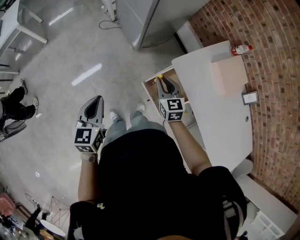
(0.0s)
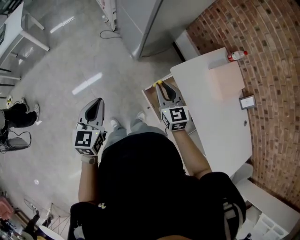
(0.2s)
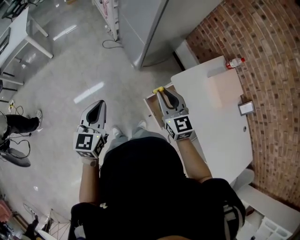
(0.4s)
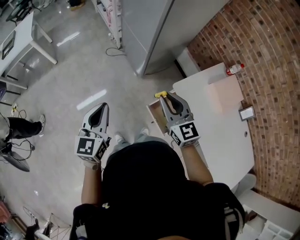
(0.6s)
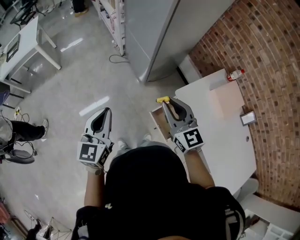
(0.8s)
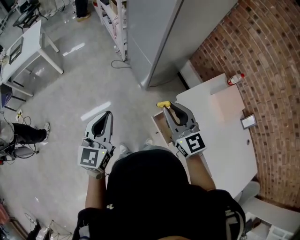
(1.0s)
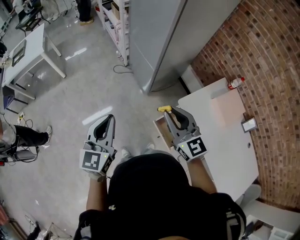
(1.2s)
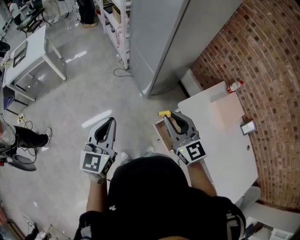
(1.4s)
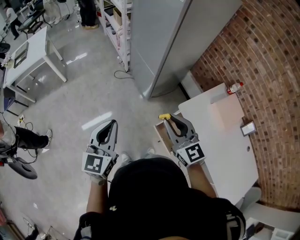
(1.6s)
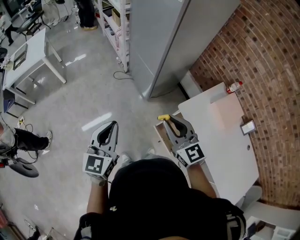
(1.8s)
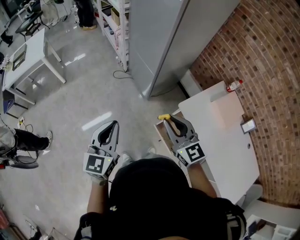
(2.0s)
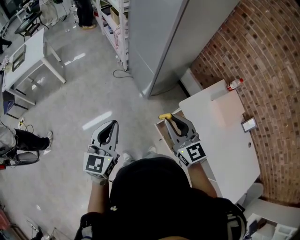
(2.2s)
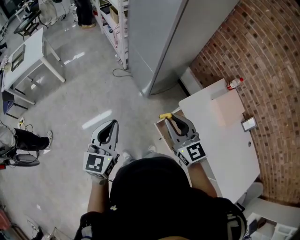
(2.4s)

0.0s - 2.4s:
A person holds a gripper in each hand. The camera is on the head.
0.0s - 1.2s: Both grippers travel together upward, some 20 cm. The right gripper changes its angle by roughly 30 degrees, while the left gripper rotates about 20 degrees.
1.2s - 2.4s: The grippers make only small movements.

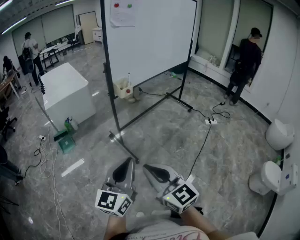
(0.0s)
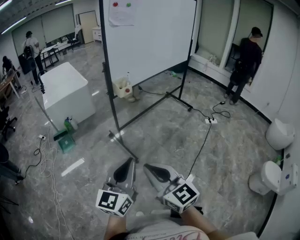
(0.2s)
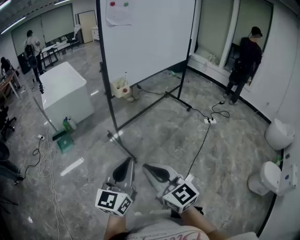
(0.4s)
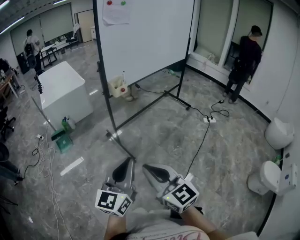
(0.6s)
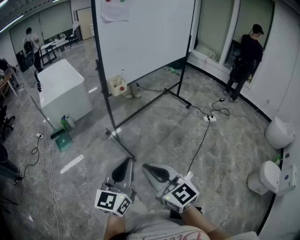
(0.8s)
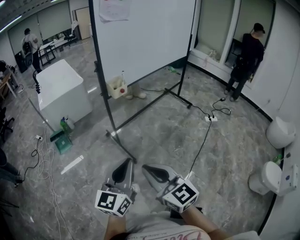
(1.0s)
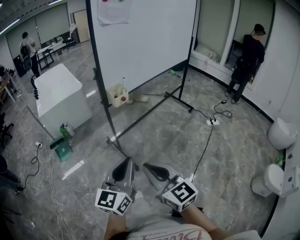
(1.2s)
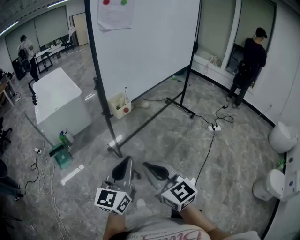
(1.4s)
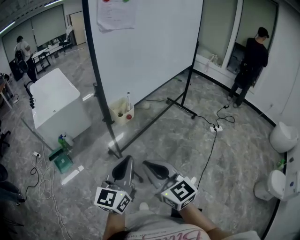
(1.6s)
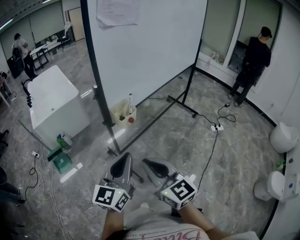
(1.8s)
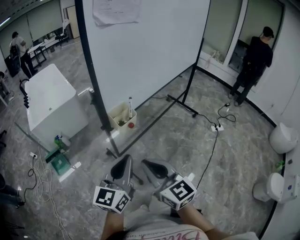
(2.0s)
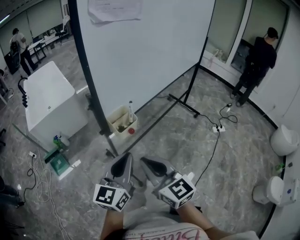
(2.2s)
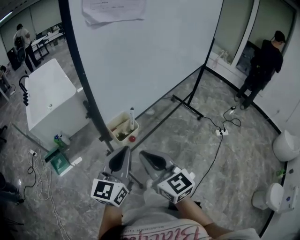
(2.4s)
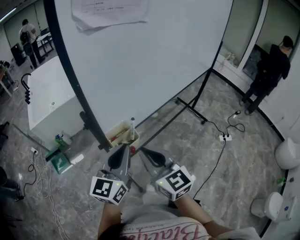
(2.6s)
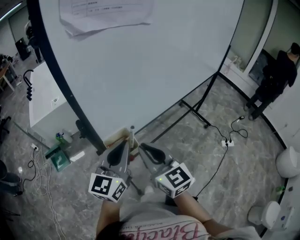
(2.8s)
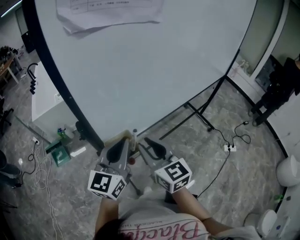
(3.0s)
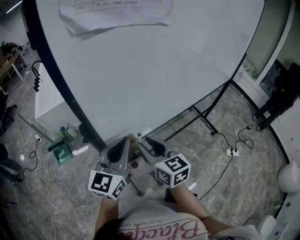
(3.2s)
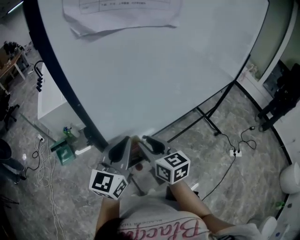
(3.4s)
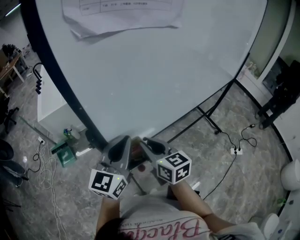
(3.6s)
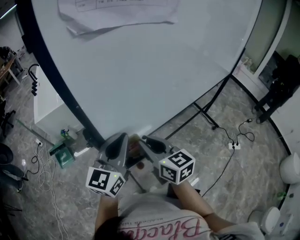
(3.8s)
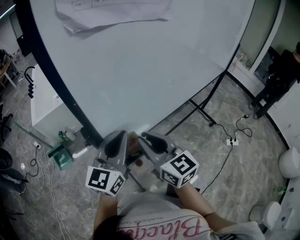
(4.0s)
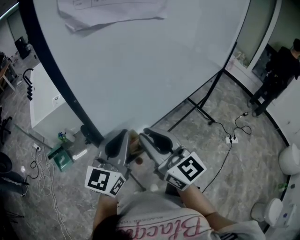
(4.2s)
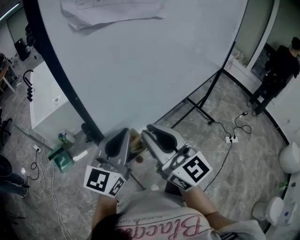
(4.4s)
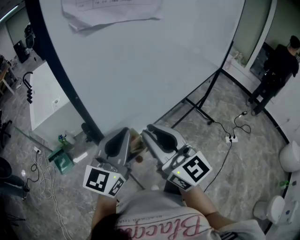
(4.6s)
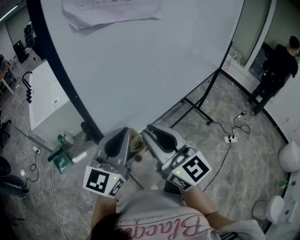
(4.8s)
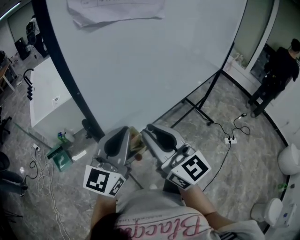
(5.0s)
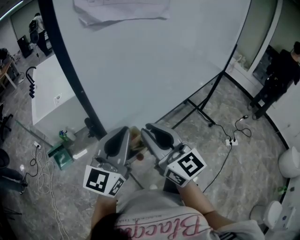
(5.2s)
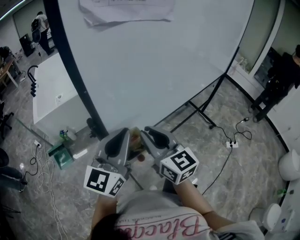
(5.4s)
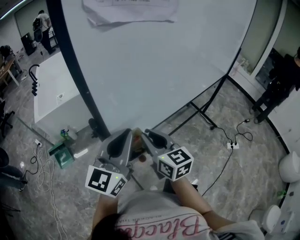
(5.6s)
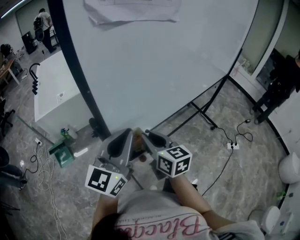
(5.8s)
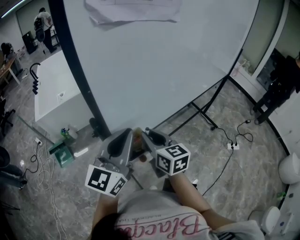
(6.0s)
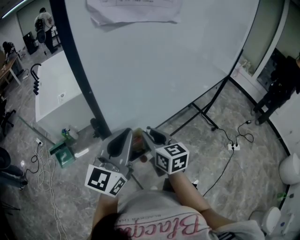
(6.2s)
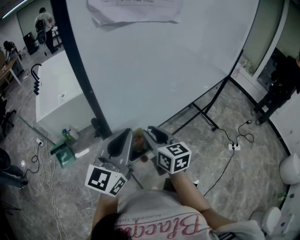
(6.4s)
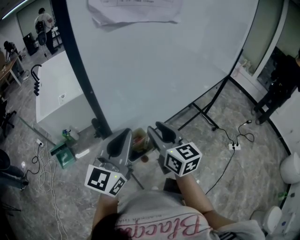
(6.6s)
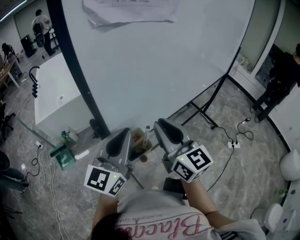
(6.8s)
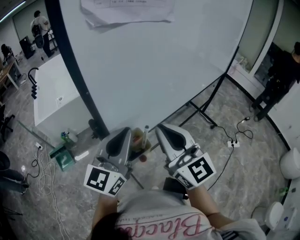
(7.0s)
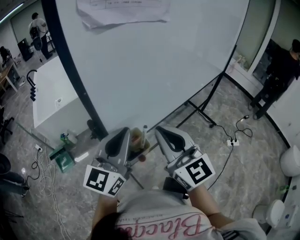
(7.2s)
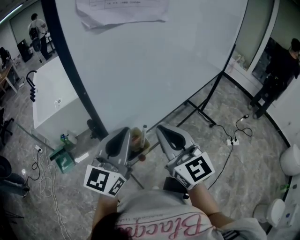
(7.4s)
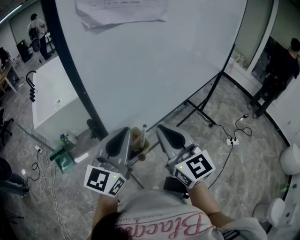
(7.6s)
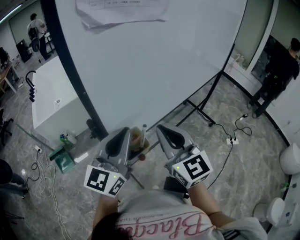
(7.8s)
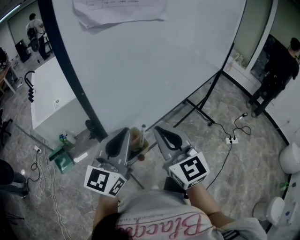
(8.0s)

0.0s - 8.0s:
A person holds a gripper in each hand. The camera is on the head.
0.0s - 1.6s: Both grippers move forward, approximately 25 cm.
1.6s - 3.2s: Both grippers move forward, some 30 cm. The right gripper opens up.
3.2s - 4.8s: The right gripper is displaced upward by about 15 cm, and rotates some 30 degrees. The left gripper moves upward, about 5 cm.
4.8s - 6.4s: The right gripper is displaced downward and forward by some 15 cm, and changes its angle by about 30 degrees.
6.4s - 8.0s: The right gripper heads upward and backward, covering roughly 10 cm, changes its angle by roughly 30 degrees, and closes.

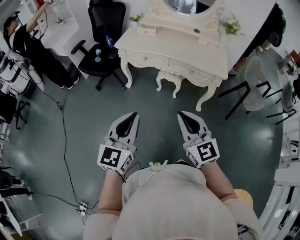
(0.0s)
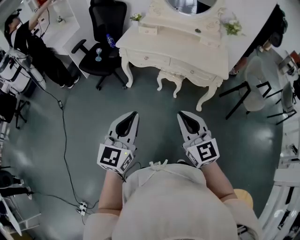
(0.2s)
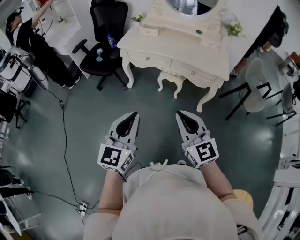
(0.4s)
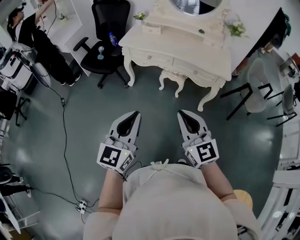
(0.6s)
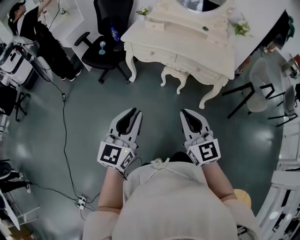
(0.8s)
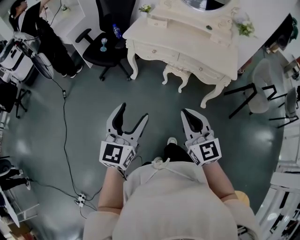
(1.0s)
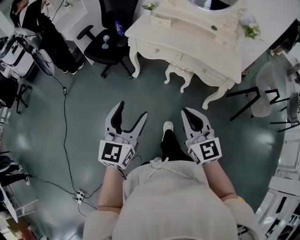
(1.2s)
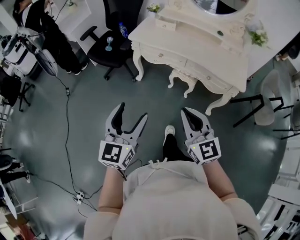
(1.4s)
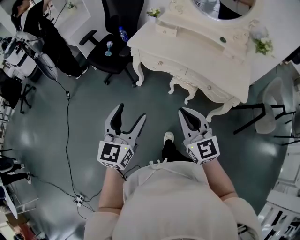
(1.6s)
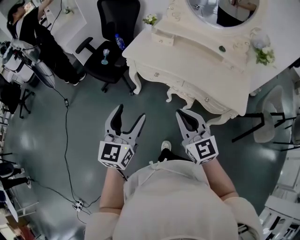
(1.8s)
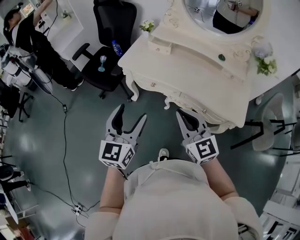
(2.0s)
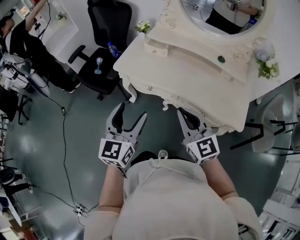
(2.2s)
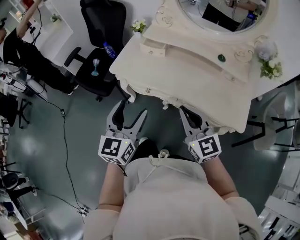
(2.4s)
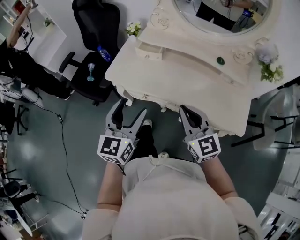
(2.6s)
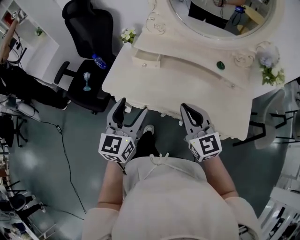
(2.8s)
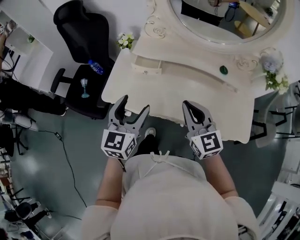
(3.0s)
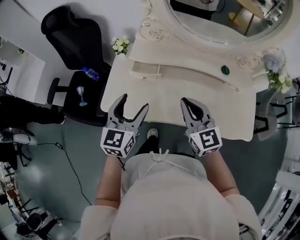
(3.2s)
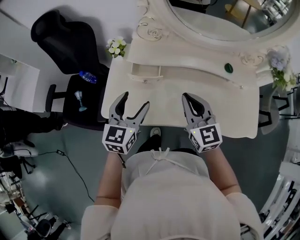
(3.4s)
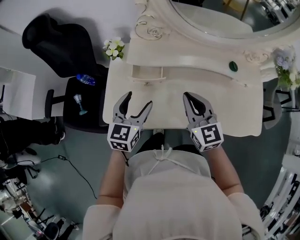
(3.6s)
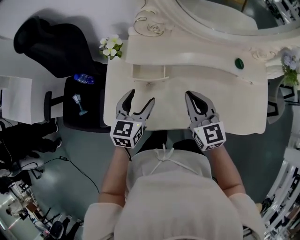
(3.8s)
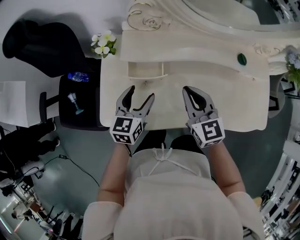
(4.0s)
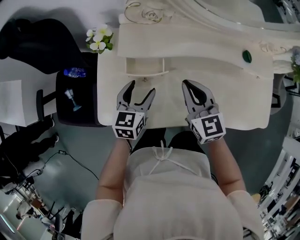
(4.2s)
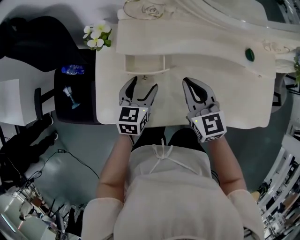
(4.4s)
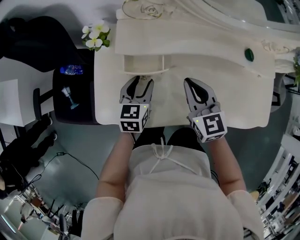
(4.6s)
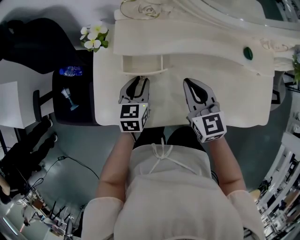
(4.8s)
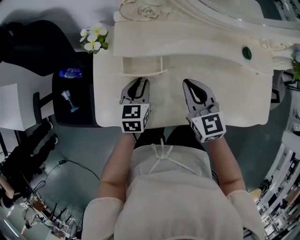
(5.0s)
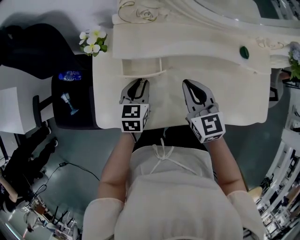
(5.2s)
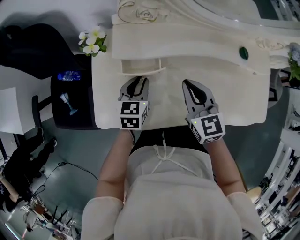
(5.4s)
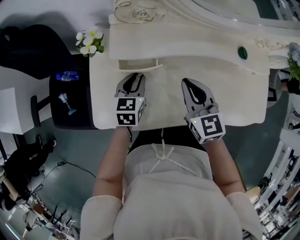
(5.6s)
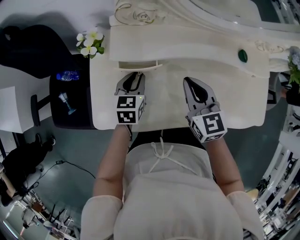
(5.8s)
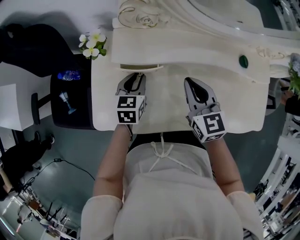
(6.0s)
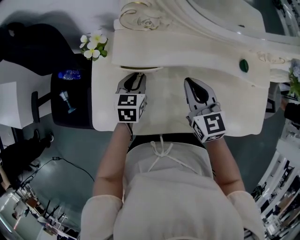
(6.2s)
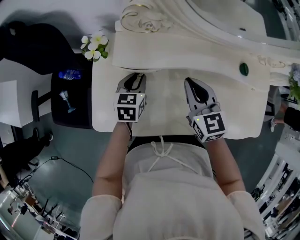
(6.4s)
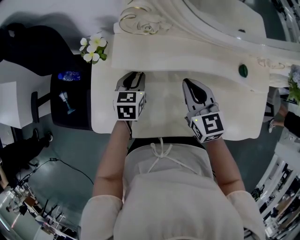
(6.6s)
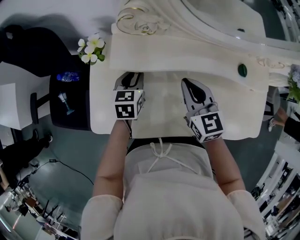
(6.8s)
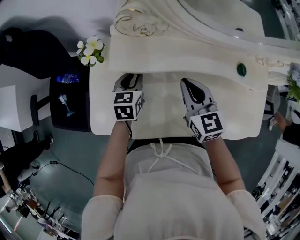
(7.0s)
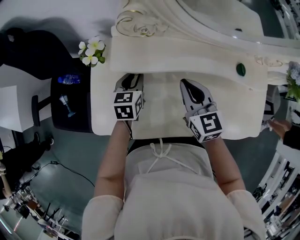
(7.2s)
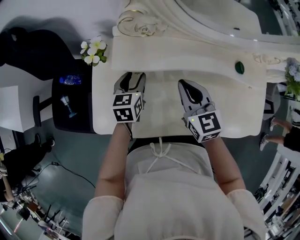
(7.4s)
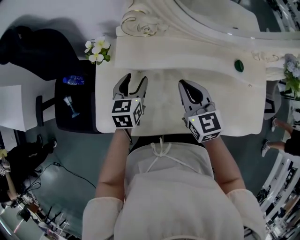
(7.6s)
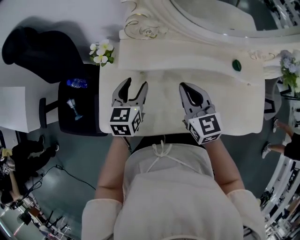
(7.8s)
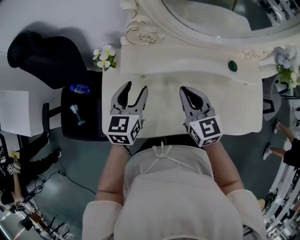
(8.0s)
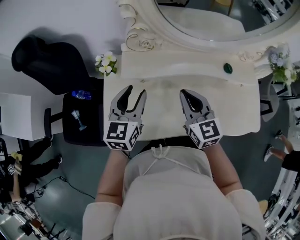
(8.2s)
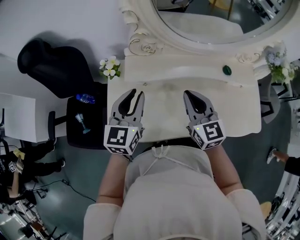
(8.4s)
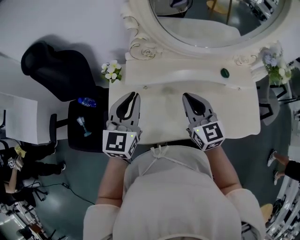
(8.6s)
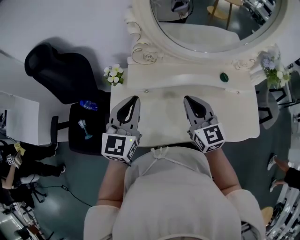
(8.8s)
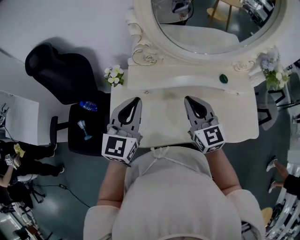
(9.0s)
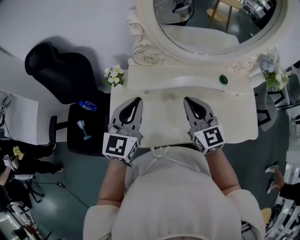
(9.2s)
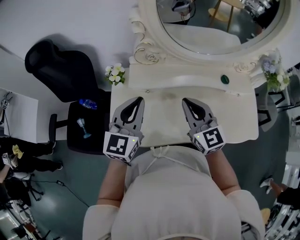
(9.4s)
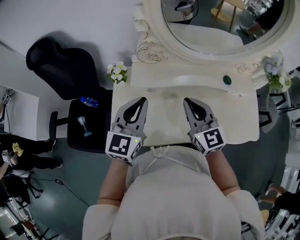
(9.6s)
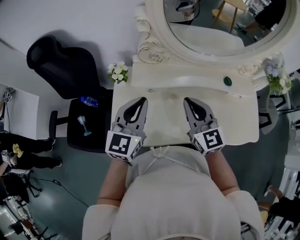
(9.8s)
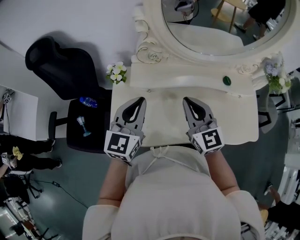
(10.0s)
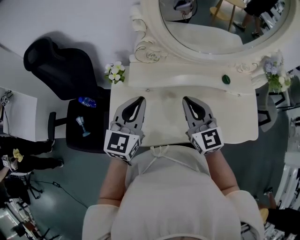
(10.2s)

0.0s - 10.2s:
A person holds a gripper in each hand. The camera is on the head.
0.0s - 1.4s: The grippers both shift forward by roughly 10 cm. The left gripper opens up.
1.4s - 3.0s: The pair of grippers is taken forward, approximately 50 cm.
3.0s - 4.4s: The left gripper heads downward and forward, covering some 30 cm, and rotates roughly 30 degrees; the right gripper travels forward and downward by approximately 25 cm.
4.4s - 5.8s: The left gripper closes up.
5.8s - 7.2s: The grippers stay close to where they were, moving slightly.
7.2s - 8.8s: The right gripper shifts about 15 cm upward and backward; the left gripper travels upward by roughly 25 cm, tilts its fingers roughly 30 degrees upward, and opens, then closes again.
8.8s - 10.2s: The grippers stay close to where they were, moving slightly.

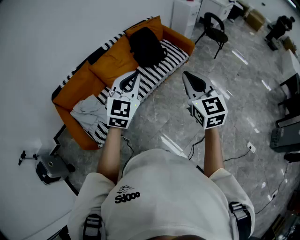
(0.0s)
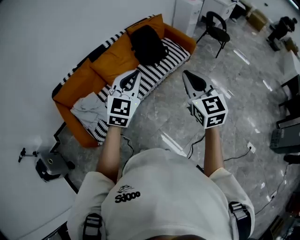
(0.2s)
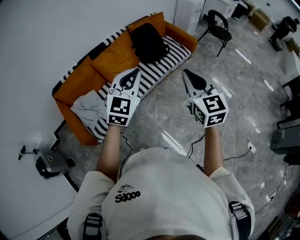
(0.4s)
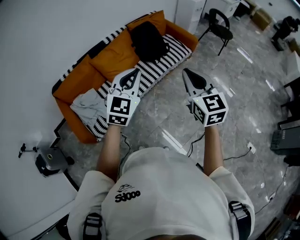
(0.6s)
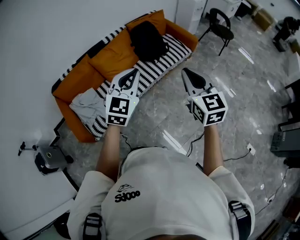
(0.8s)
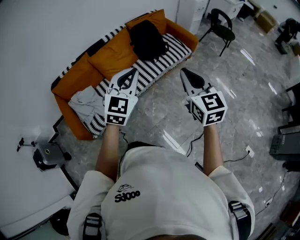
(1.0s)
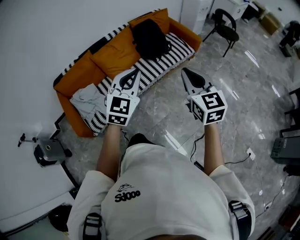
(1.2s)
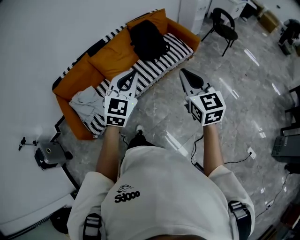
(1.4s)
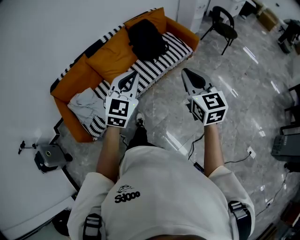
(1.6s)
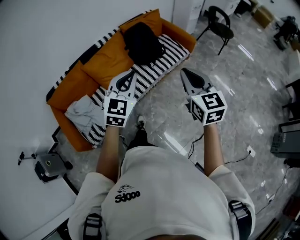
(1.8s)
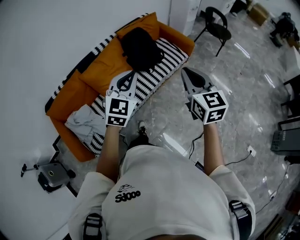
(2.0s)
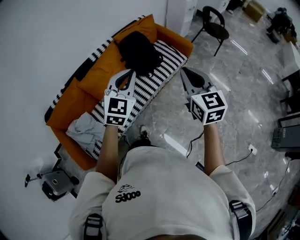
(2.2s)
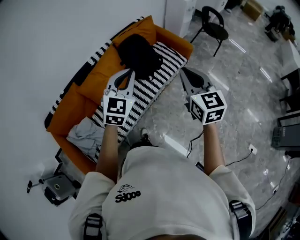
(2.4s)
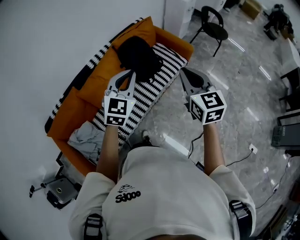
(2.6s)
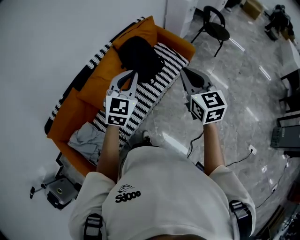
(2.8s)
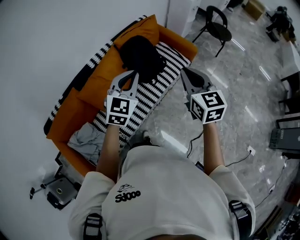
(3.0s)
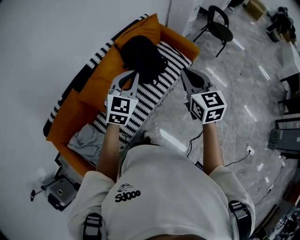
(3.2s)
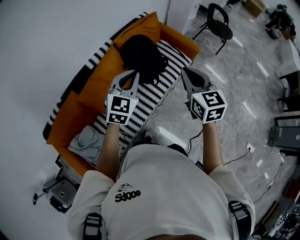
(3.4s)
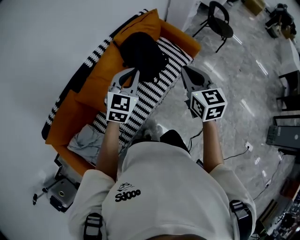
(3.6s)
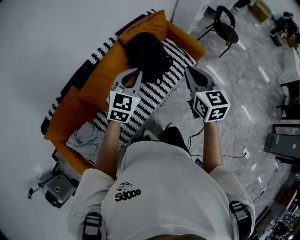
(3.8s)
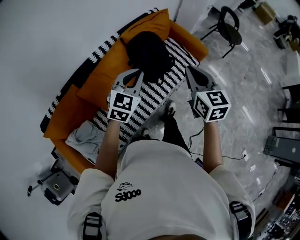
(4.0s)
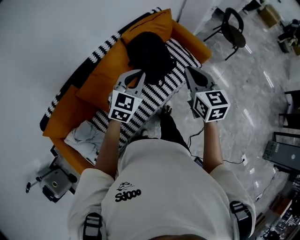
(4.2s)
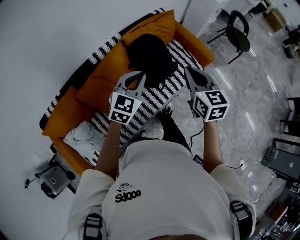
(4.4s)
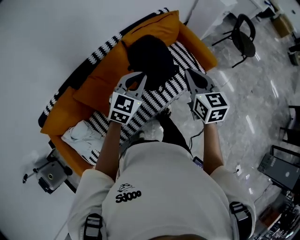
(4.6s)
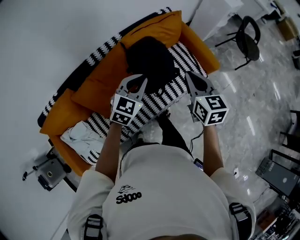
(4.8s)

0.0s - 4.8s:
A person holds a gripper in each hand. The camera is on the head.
0.0s - 1.6s: The right gripper travels to the right, forward and downward by some 15 cm. The left gripper goes roughly 10 cm to the right.
1.6s - 3.2s: The two grippers travel together, forward, about 40 cm.
3.2s - 4.8s: Both grippers move forward and downward, about 30 cm.
